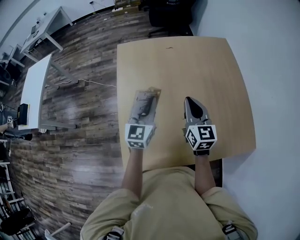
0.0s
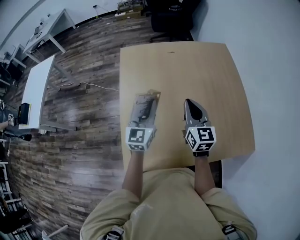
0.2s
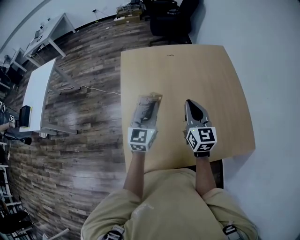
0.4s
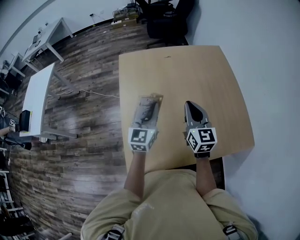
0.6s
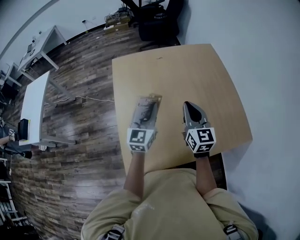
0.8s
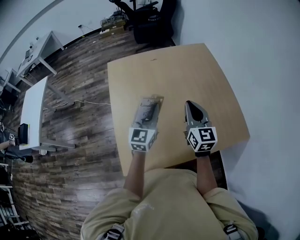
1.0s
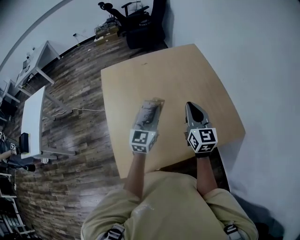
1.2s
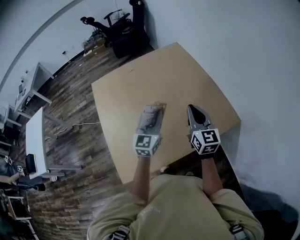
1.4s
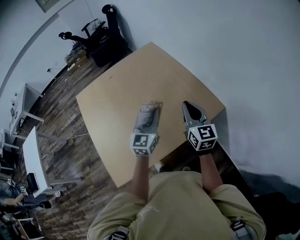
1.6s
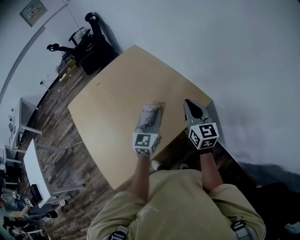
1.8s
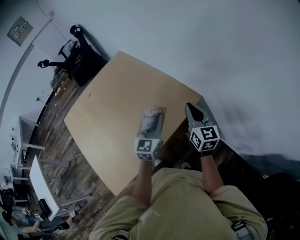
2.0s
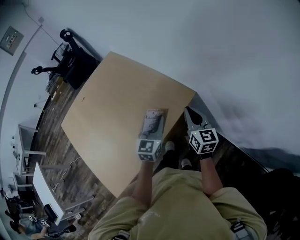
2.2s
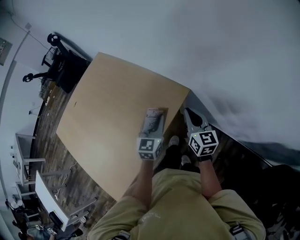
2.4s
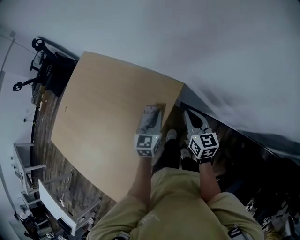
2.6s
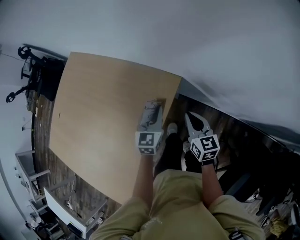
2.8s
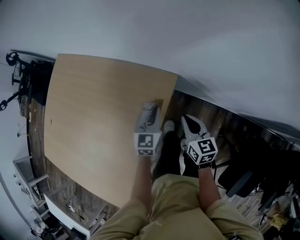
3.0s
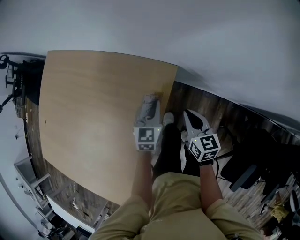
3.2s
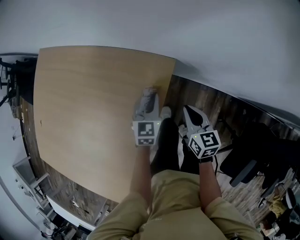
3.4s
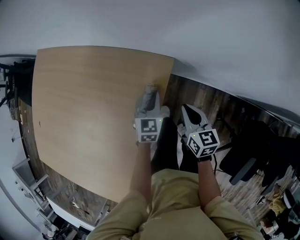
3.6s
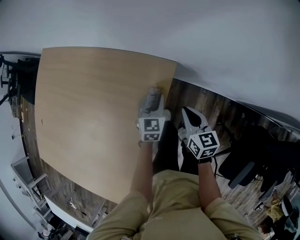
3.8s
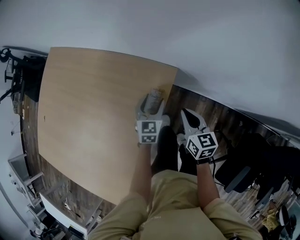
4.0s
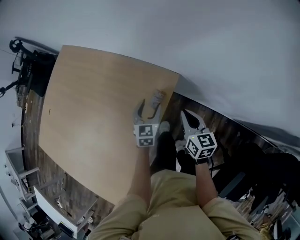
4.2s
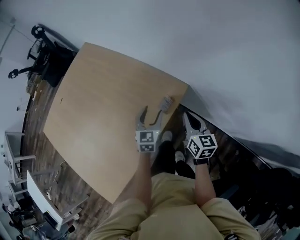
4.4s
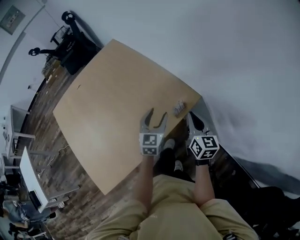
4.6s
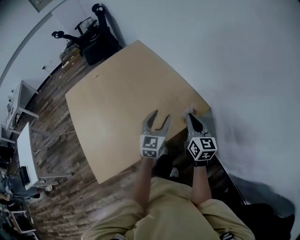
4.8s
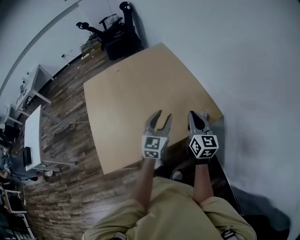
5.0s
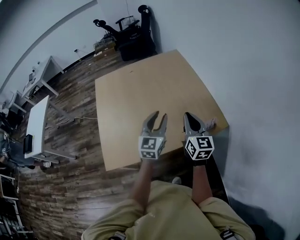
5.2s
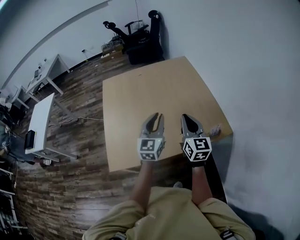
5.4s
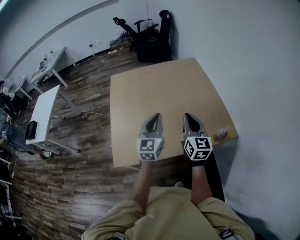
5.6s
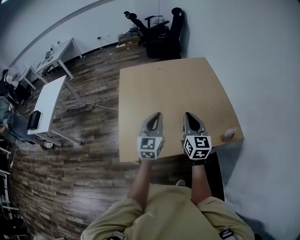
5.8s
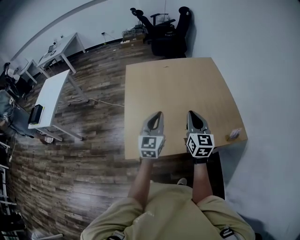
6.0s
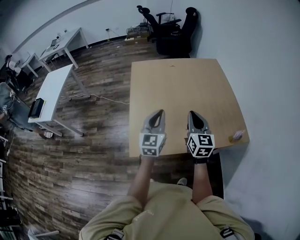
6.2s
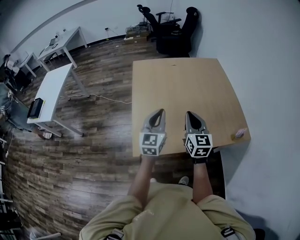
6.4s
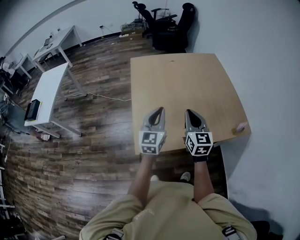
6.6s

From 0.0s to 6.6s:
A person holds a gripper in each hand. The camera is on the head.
From 0.0s to 1.6s: The left gripper changes place by about 35 cm, and swivels some 30 degrees. The right gripper moves about 35 cm, and changes its angle by some 20 degrees.
From 1.6s to 3.2s: The right gripper travels downward by roughly 35 cm, and swivels approximately 50 degrees. Meanwhile the left gripper shifts by some 50 cm, and swivels some 40 degrees.
From 3.2s to 5.0s: Both grippers travel together upward, roughly 30 cm. The right gripper swivels approximately 40 degrees. Meanwhile the left gripper changes its angle by some 50 degrees, and opens up.
From 5.0s to 6.6s: The pair of grippers is taken to the left, approximately 40 cm. The left gripper turns by some 20 degrees, and closes up, while the right gripper rotates roughly 20 degrees.

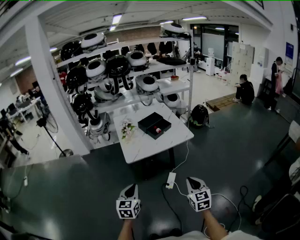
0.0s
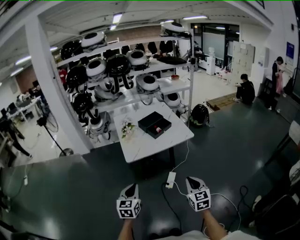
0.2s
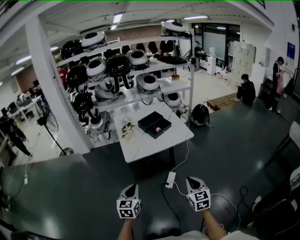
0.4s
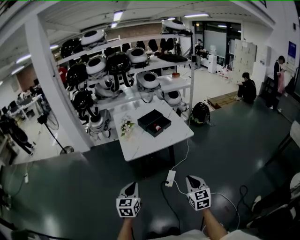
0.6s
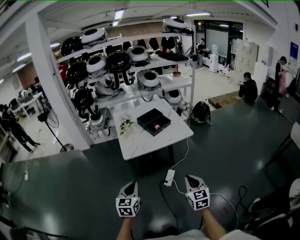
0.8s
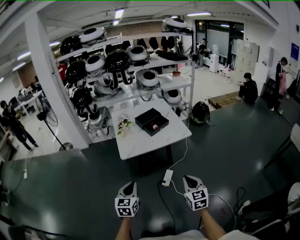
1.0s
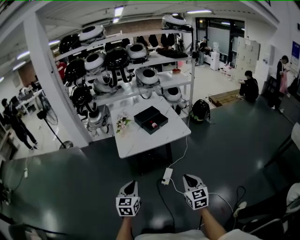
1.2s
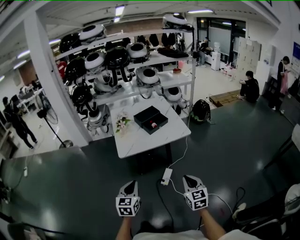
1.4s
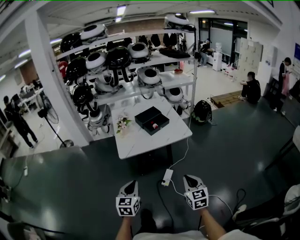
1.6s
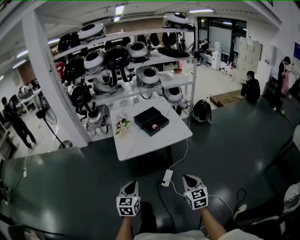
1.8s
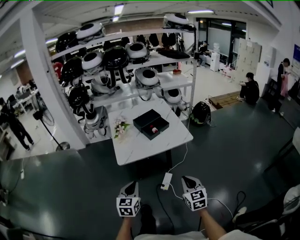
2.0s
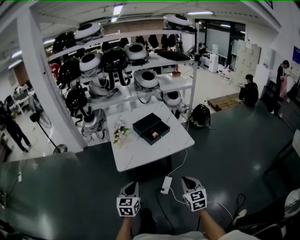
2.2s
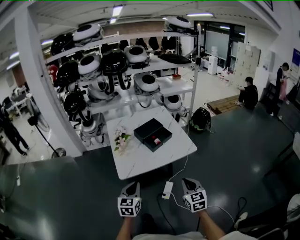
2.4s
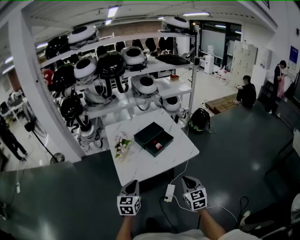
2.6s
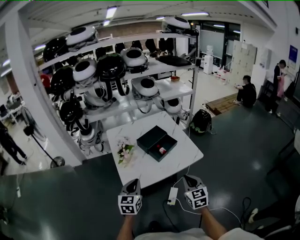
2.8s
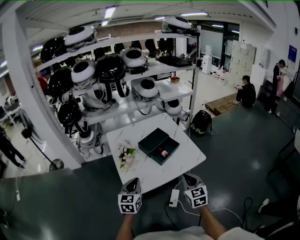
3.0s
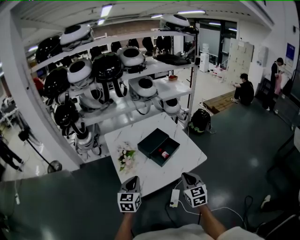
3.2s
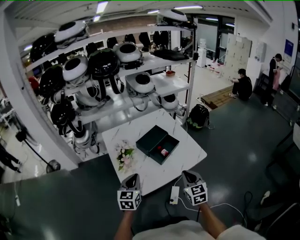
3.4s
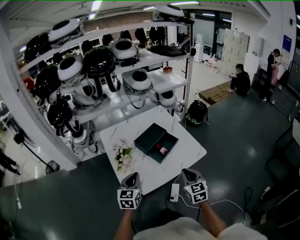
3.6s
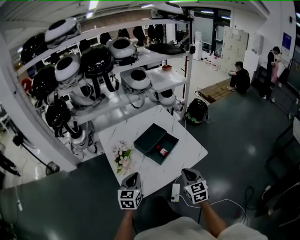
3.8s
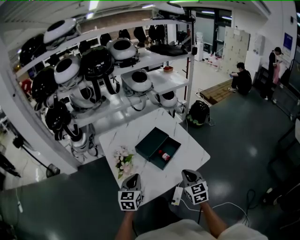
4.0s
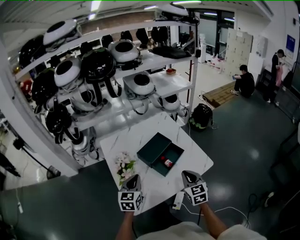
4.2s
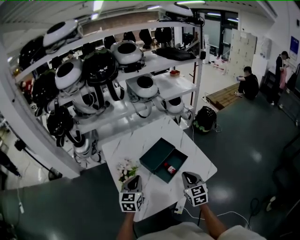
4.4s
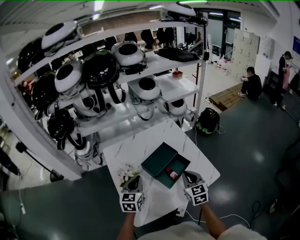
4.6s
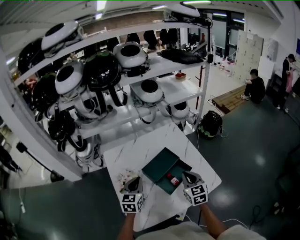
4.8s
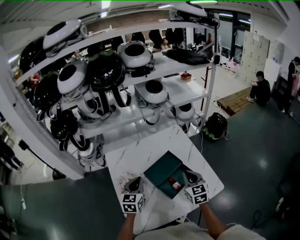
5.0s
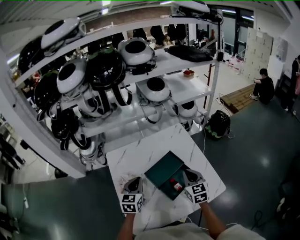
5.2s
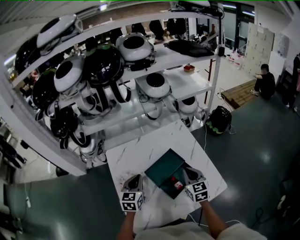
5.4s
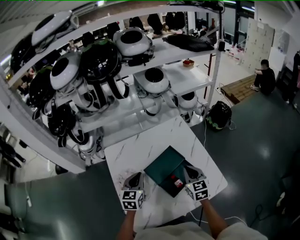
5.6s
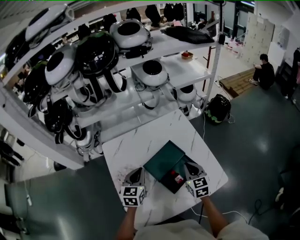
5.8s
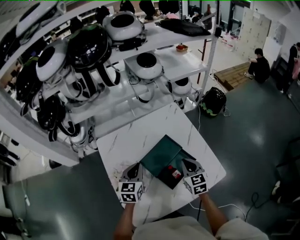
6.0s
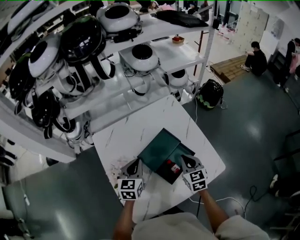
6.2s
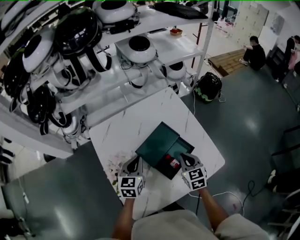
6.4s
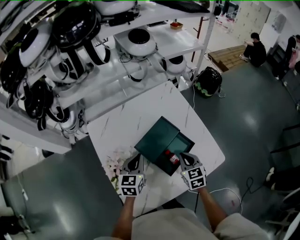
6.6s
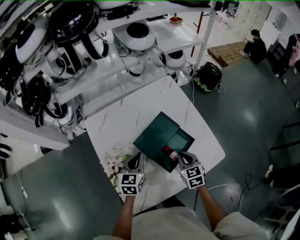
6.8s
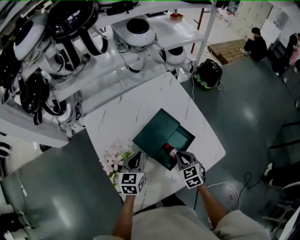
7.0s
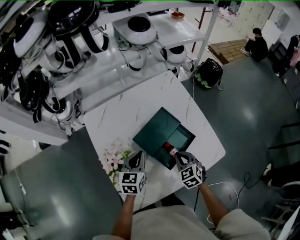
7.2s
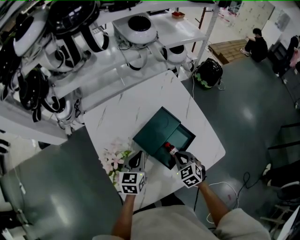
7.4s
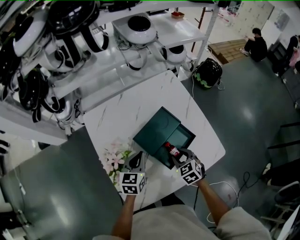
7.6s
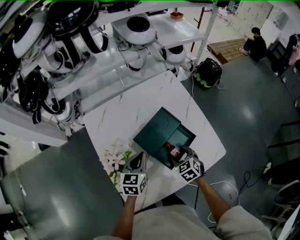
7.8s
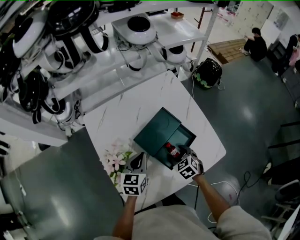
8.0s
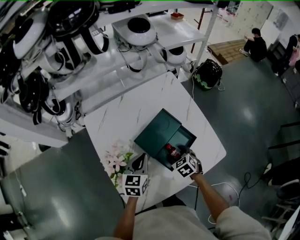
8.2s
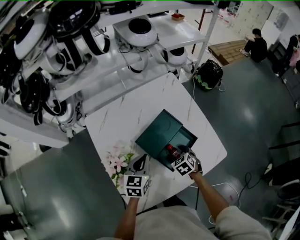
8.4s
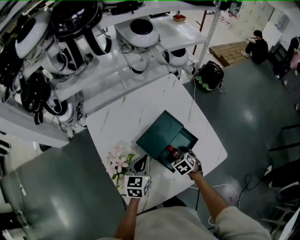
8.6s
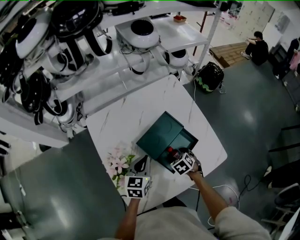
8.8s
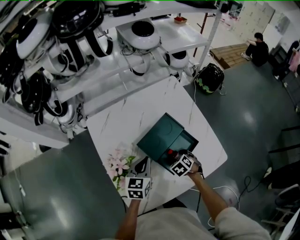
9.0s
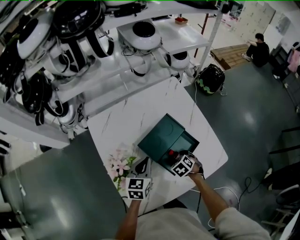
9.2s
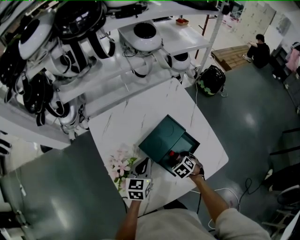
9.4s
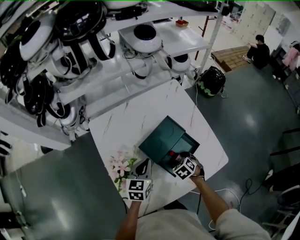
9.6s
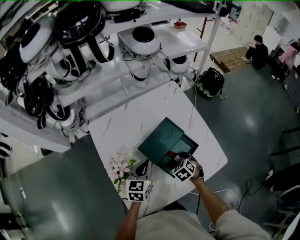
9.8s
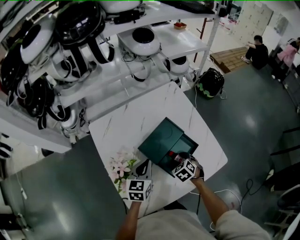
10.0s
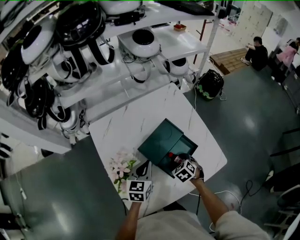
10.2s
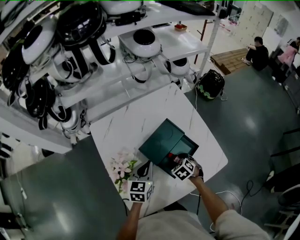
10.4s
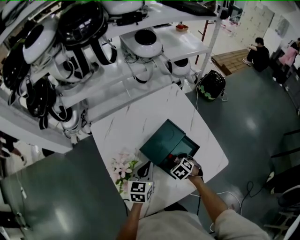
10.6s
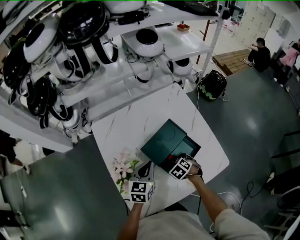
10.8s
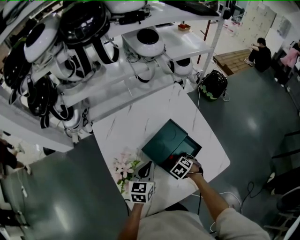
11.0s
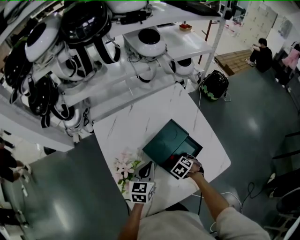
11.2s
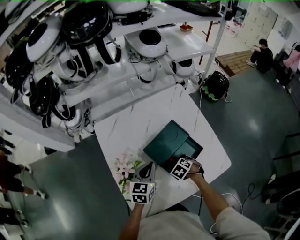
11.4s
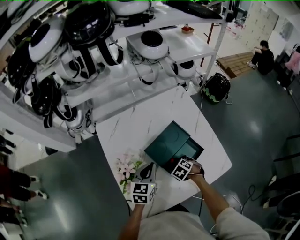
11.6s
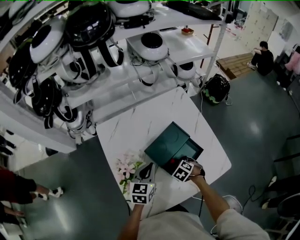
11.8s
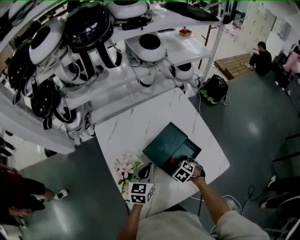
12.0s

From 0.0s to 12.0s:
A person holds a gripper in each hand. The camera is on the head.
From 0.0s to 1.6s: Both grippers move to the right, some 5 cm.
From 1.6s to 3.0s: The grippers both shift forward by some 35 cm.
From 3.0s to 4.4s: The two grippers go about 25 cm forward.
From 4.4s to 6.0s: The two grippers go approximately 20 cm forward.
From 6.0s to 7.6s: The left gripper is displaced downward by approximately 10 cm. The right gripper is displaced downward by some 15 cm, swivels approximately 30 degrees, and opens up.
From 7.6s to 9.0s: The right gripper is displaced downward by roughly 5 cm, and turns by approximately 20 degrees.
From 9.0s to 12.0s: The grippers make only small movements.

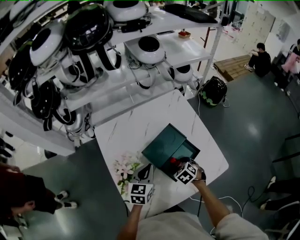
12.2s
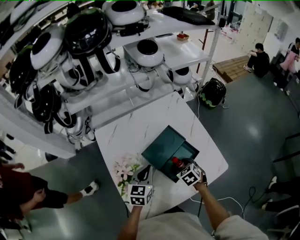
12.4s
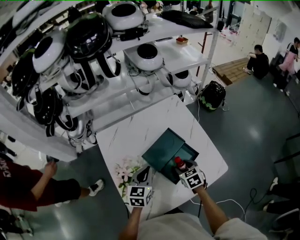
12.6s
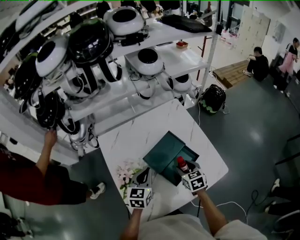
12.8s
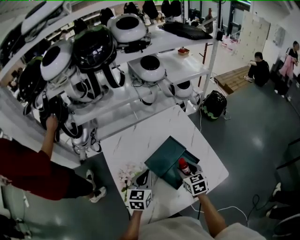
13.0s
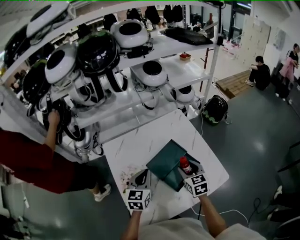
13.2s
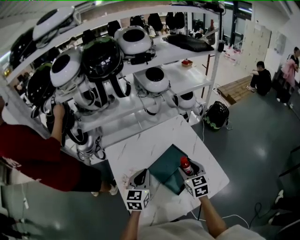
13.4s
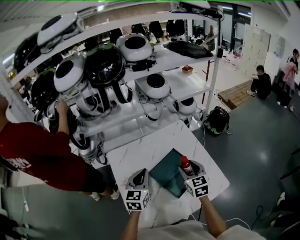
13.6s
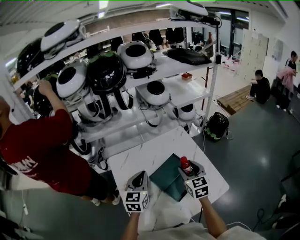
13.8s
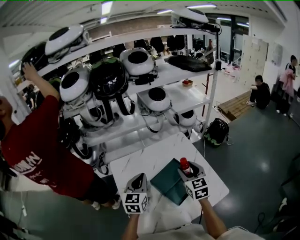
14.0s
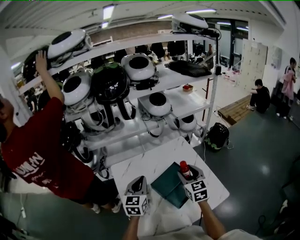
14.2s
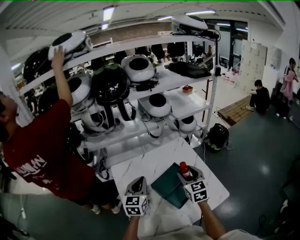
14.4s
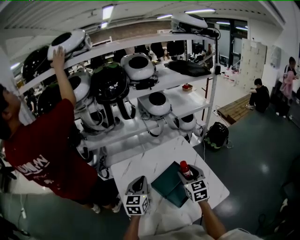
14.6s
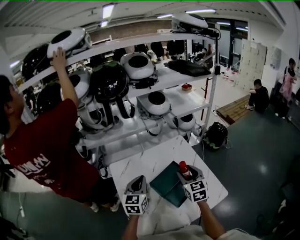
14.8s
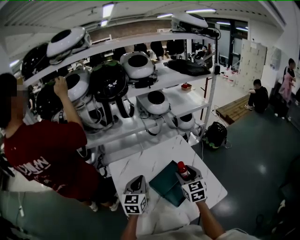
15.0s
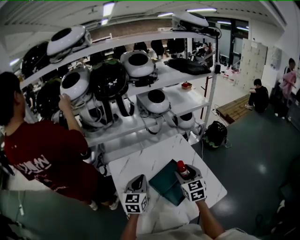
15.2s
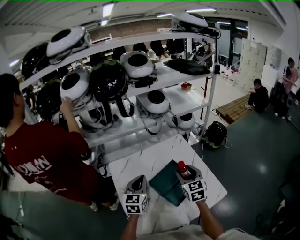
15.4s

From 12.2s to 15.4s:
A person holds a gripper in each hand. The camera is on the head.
From 12.2s to 13.8s: The left gripper goes roughly 15 cm upward. The right gripper shifts some 25 cm upward, and tips its fingers upward by roughly 50 degrees.
From 13.8s to 15.4s: The grippers move only a little.

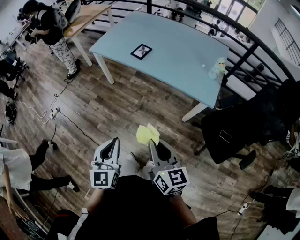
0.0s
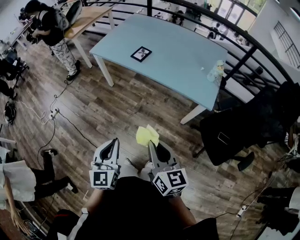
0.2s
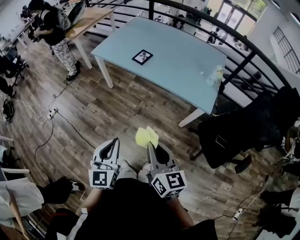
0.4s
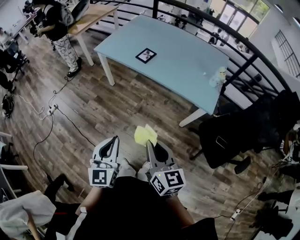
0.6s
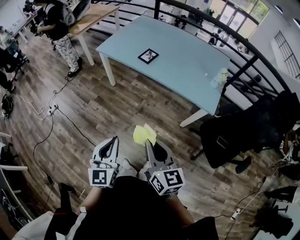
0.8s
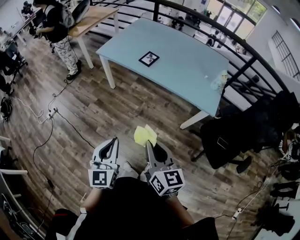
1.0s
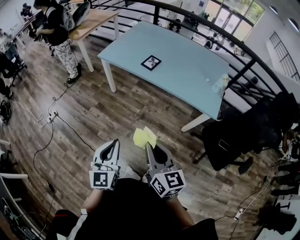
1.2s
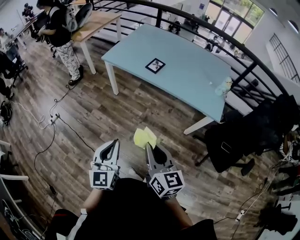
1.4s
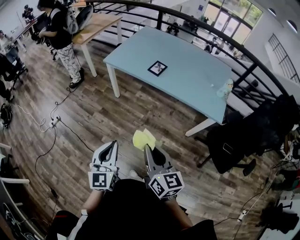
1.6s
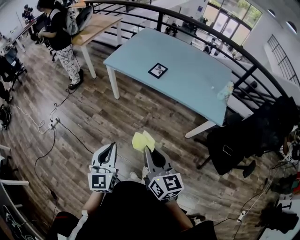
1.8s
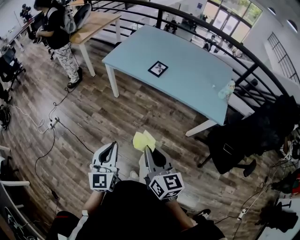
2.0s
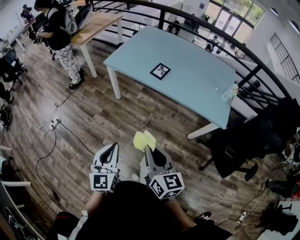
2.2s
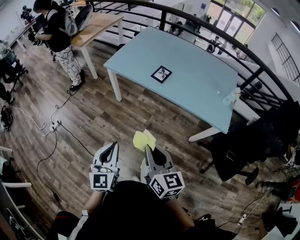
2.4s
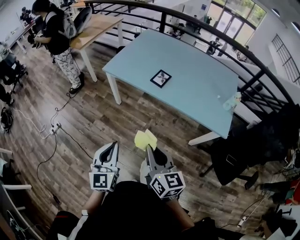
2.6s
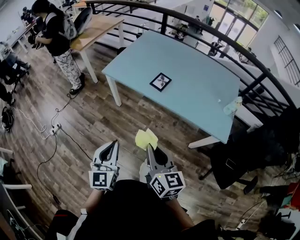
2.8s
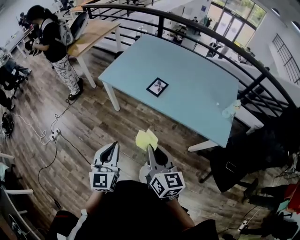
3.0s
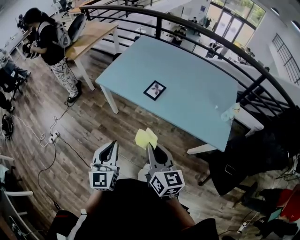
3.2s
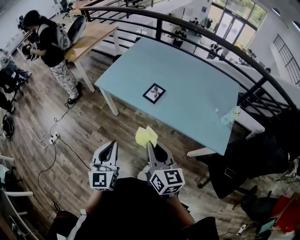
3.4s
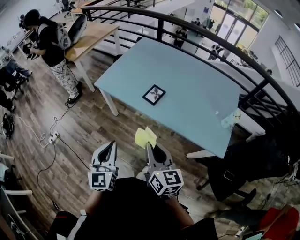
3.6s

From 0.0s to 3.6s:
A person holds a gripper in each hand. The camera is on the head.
From 0.0s to 1.8s: The grippers both shift to the left by some 20 cm.
From 1.8s to 3.6s: The grippers both shift forward and to the right by approximately 25 cm.
